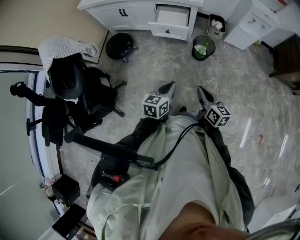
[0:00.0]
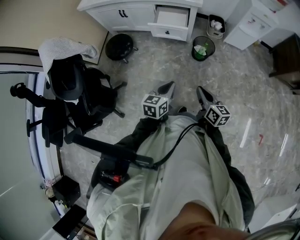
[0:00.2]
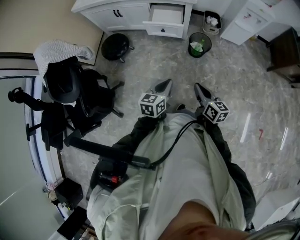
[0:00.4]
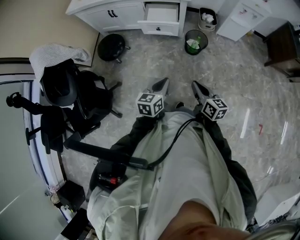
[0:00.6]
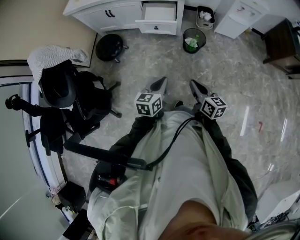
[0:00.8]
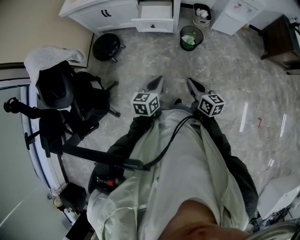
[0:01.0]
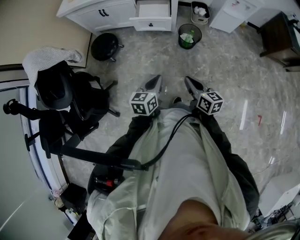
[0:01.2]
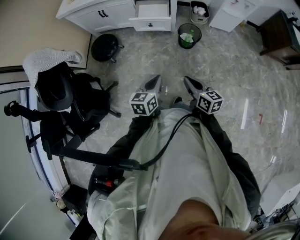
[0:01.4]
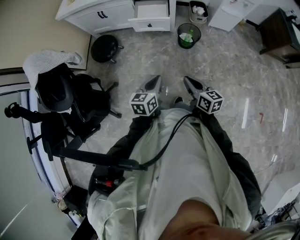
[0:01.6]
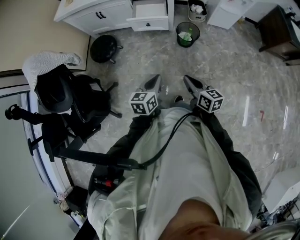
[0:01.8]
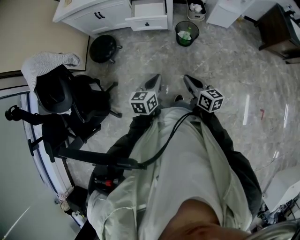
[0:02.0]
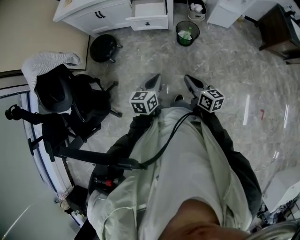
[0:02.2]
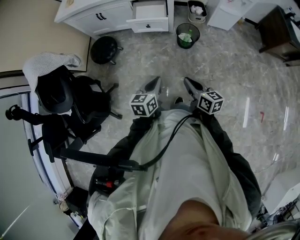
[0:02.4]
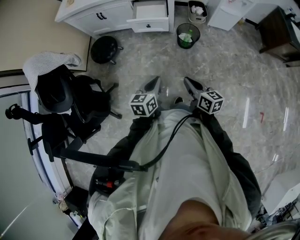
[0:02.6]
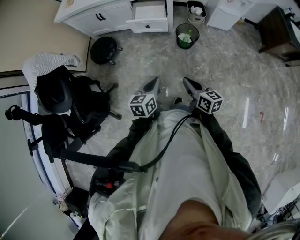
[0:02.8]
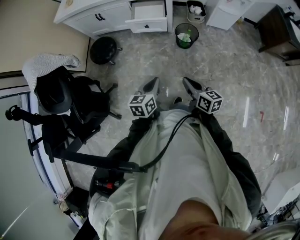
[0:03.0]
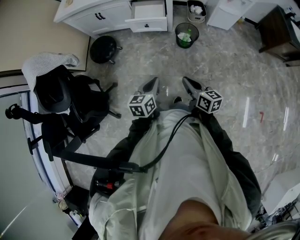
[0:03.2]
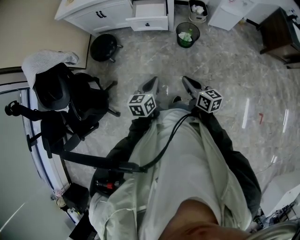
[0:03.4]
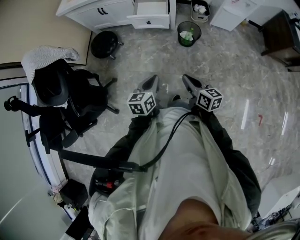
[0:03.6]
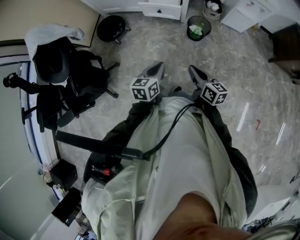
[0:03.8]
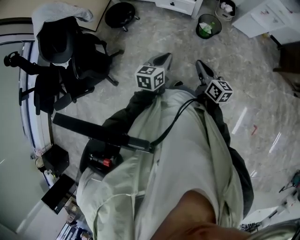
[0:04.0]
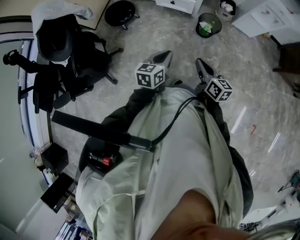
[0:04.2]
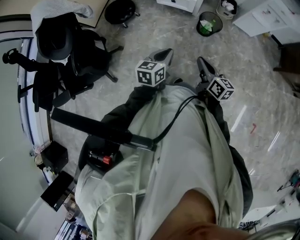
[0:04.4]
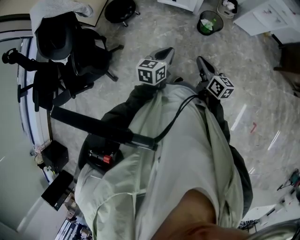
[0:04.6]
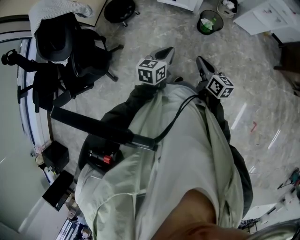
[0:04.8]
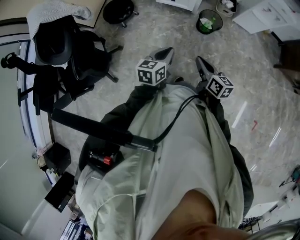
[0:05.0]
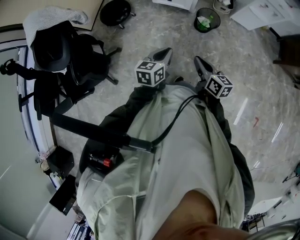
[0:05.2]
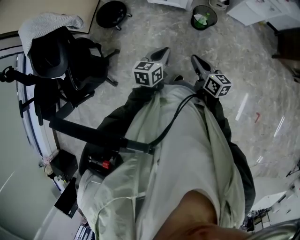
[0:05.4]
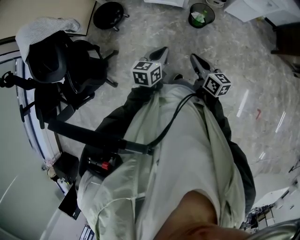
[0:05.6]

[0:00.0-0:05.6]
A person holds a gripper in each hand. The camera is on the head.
0:00.0 to 0:01.4: The grippers stay close to where they were, moving slightly.
0:01.4 to 0:02.8: Both grippers stay put.
0:02.8 to 0:05.6: There are only small adjustments of the grippers.

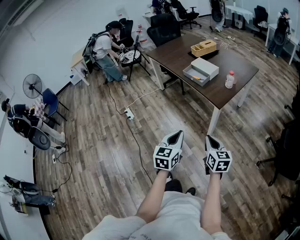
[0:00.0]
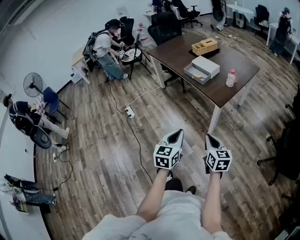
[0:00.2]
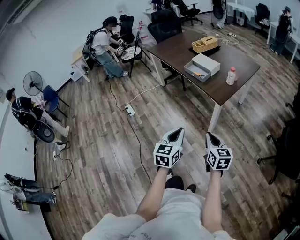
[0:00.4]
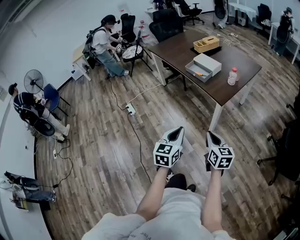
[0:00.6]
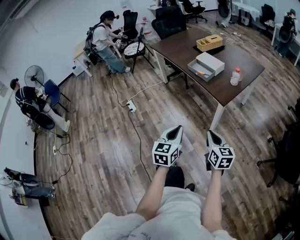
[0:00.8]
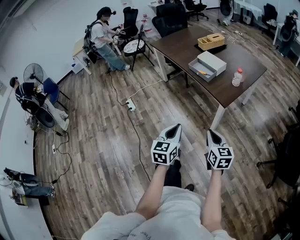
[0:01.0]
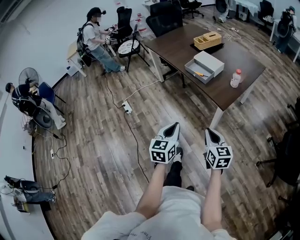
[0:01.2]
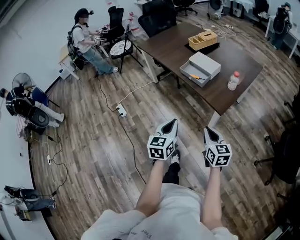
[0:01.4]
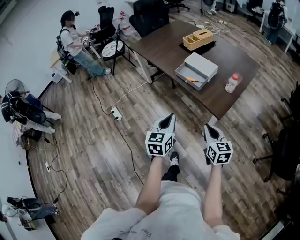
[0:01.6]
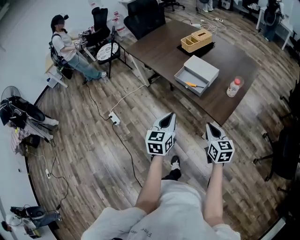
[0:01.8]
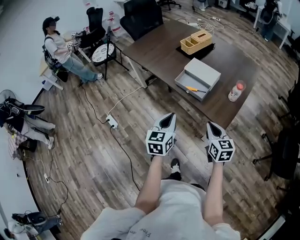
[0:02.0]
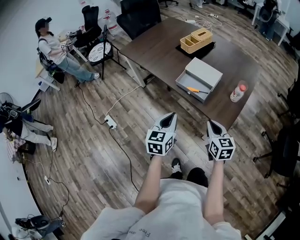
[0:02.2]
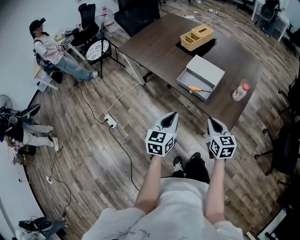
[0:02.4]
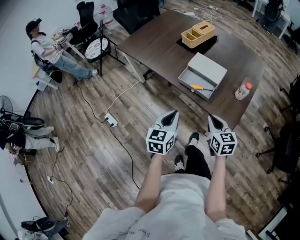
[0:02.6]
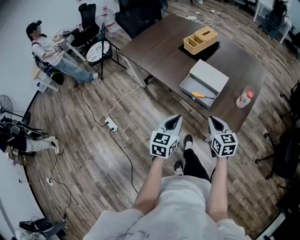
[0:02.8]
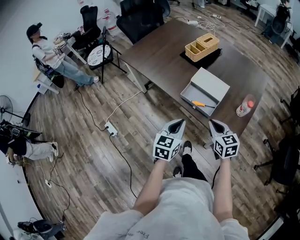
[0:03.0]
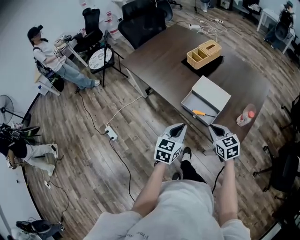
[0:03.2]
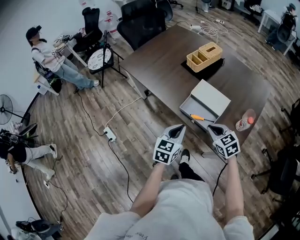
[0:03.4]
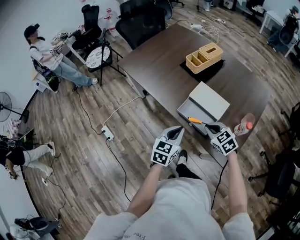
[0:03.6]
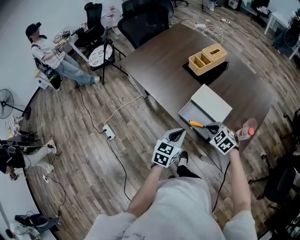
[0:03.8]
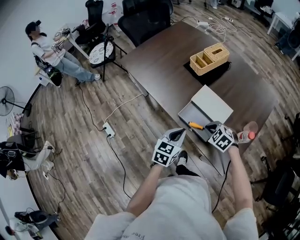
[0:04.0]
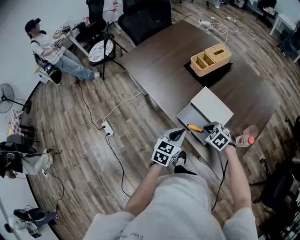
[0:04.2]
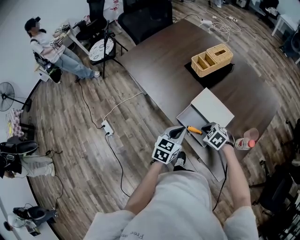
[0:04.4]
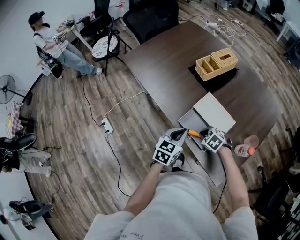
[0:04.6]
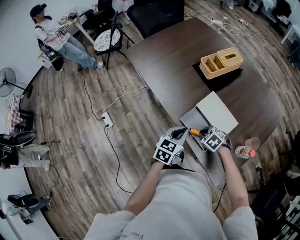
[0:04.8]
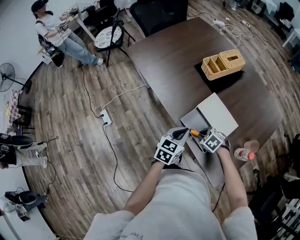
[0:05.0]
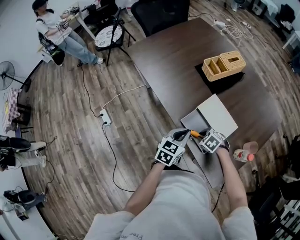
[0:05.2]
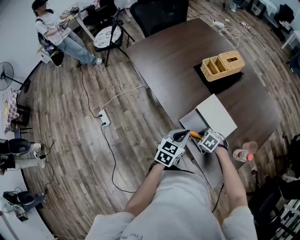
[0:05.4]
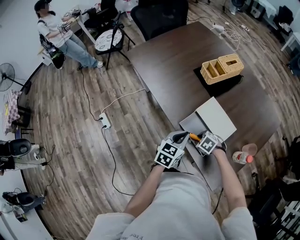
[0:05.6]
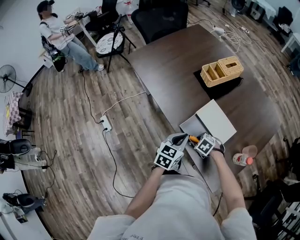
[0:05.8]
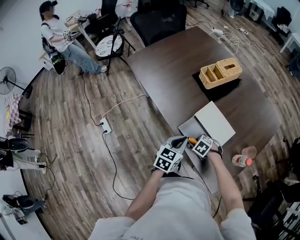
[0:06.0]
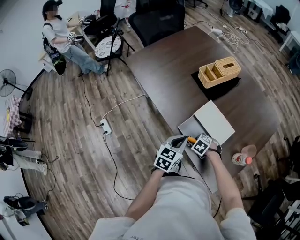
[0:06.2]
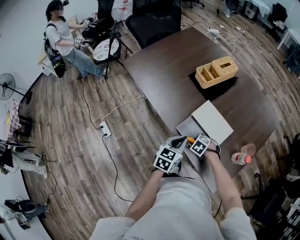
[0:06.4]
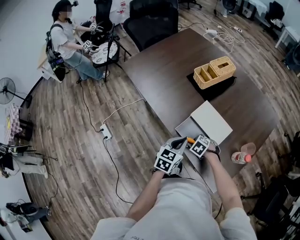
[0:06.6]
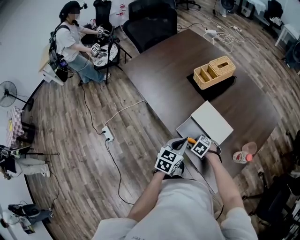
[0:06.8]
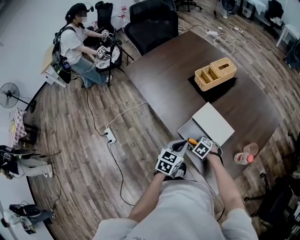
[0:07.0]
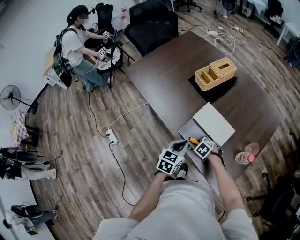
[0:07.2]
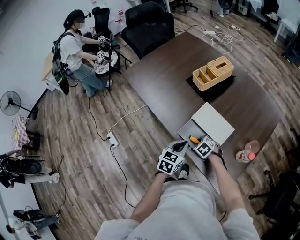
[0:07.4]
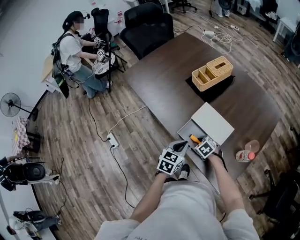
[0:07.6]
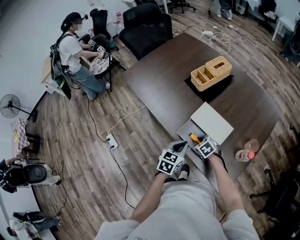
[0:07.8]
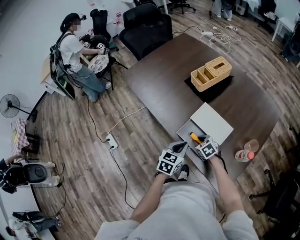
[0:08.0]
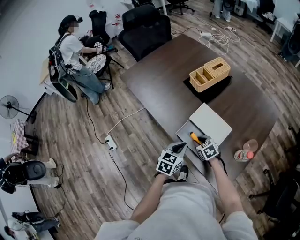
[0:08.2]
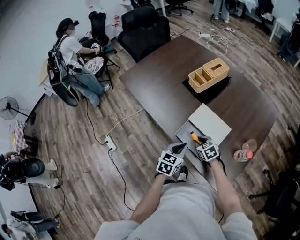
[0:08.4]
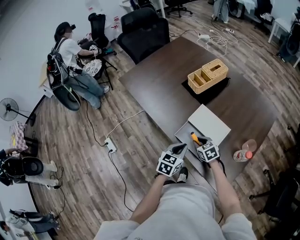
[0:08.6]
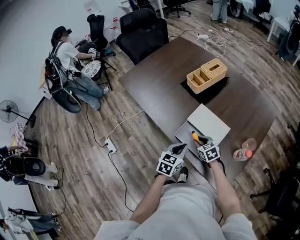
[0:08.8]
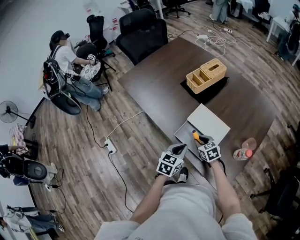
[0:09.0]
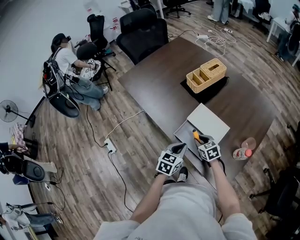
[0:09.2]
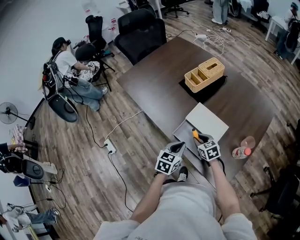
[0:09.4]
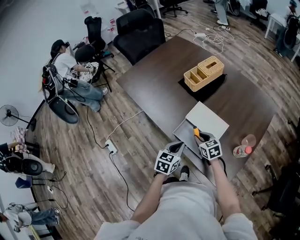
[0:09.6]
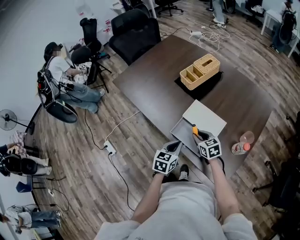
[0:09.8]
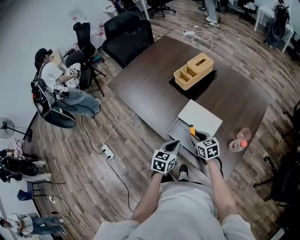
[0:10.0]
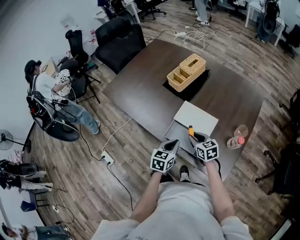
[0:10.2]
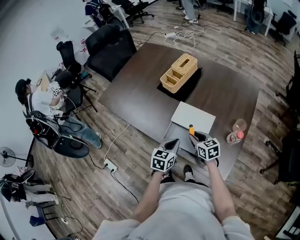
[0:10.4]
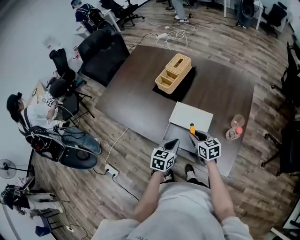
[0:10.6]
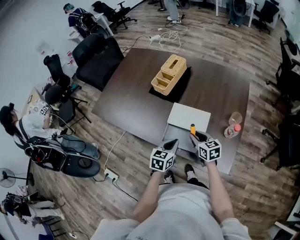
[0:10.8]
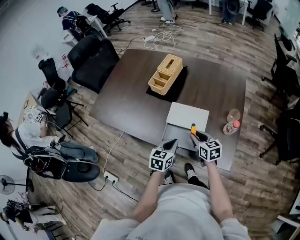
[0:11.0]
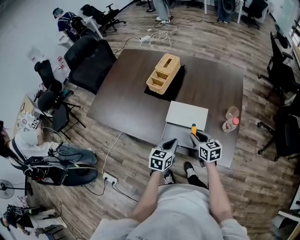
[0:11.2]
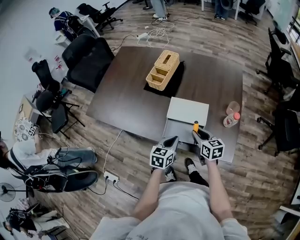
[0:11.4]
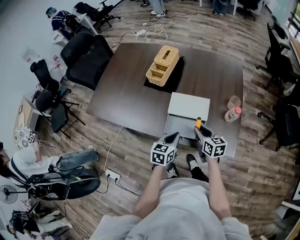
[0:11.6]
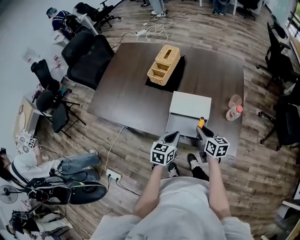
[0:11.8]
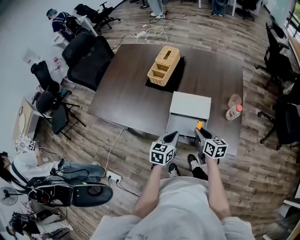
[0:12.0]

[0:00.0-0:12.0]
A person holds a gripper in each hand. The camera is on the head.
0:00.0 to 0:01.6: The two grippers go roughly 25 cm forward.
0:01.6 to 0:03.0: The two grippers go approximately 25 cm forward.
0:03.0 to 0:04.4: Both grippers move forward and downward, some 20 cm. The right gripper points its fingers about 40 degrees further downward.
0:04.4 to 0:06.0: The right gripper heads downward, covering about 10 cm, and opens.
0:06.0 to 0:07.6: The right gripper rotates about 20 degrees.
0:07.6 to 0:09.0: The right gripper moves upward, about 5 cm, and changes its angle by roughly 30 degrees.
0:09.0 to 0:10.4: The right gripper shifts some 5 cm upward, and changes its angle by approximately 30 degrees.
0:10.4 to 0:12.0: The right gripper moves backward, about 5 cm, and changes its angle by roughly 30 degrees.

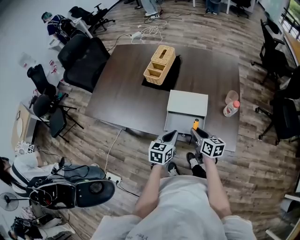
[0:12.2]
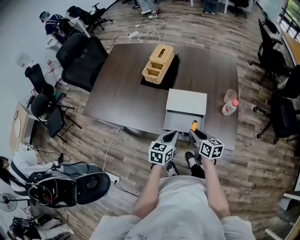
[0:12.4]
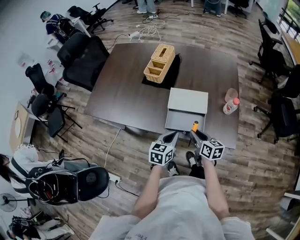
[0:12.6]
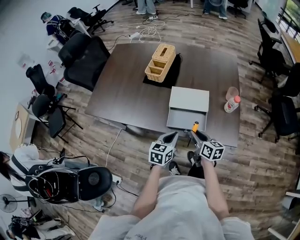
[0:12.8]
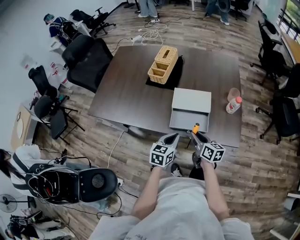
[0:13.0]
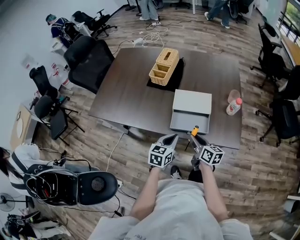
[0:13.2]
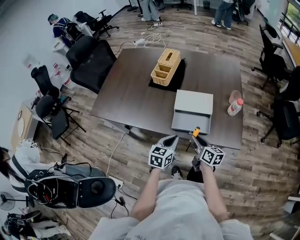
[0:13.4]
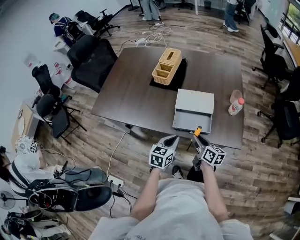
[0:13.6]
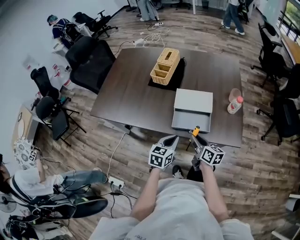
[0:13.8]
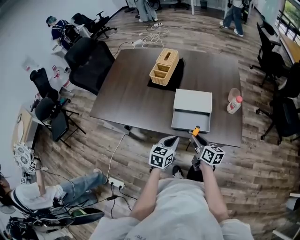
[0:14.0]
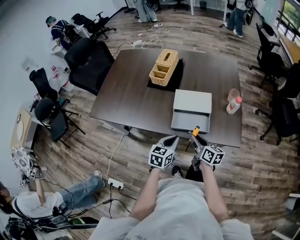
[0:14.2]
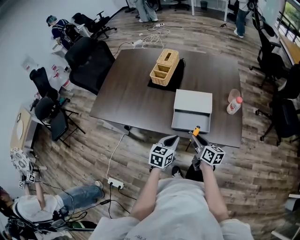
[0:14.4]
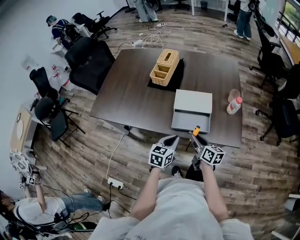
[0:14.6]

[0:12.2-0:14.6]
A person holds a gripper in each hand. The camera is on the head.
0:12.2 to 0:13.4: The two grippers go roughly 5 cm backward.
0:13.4 to 0:14.6: The two grippers keep their place.

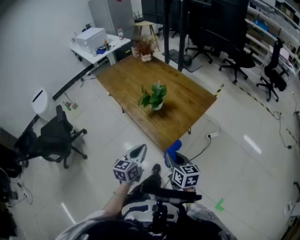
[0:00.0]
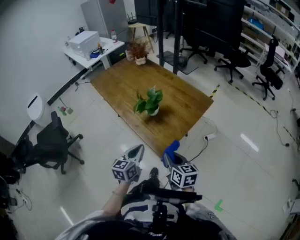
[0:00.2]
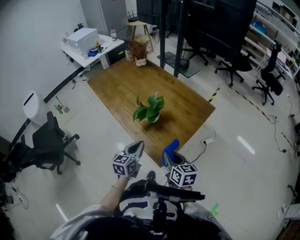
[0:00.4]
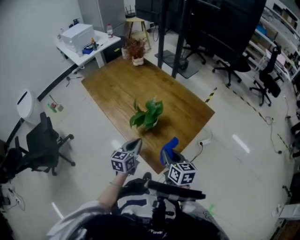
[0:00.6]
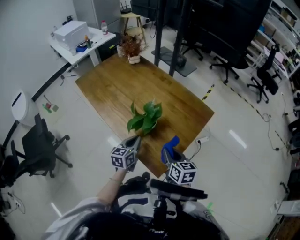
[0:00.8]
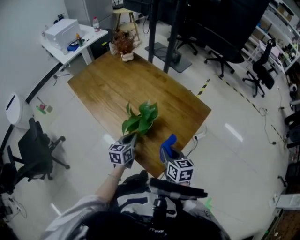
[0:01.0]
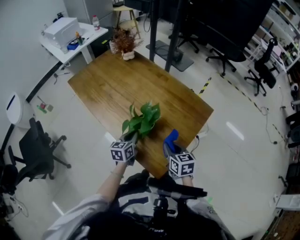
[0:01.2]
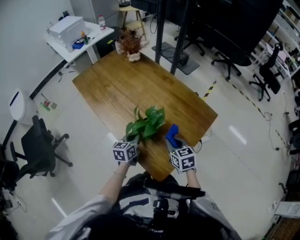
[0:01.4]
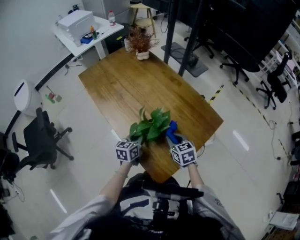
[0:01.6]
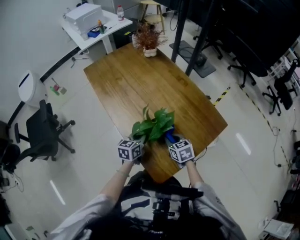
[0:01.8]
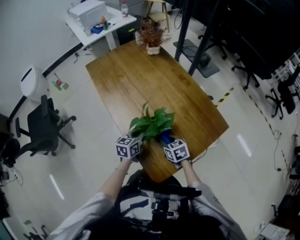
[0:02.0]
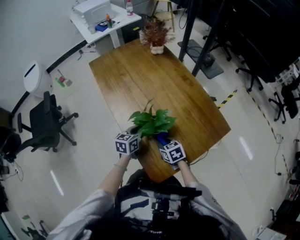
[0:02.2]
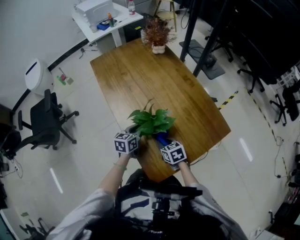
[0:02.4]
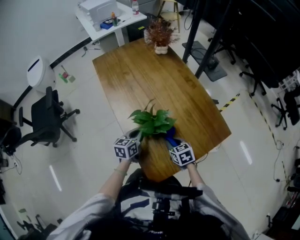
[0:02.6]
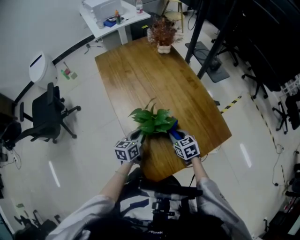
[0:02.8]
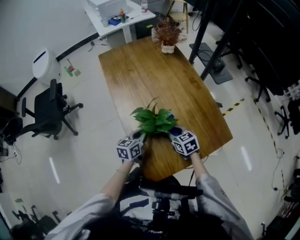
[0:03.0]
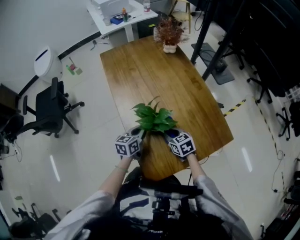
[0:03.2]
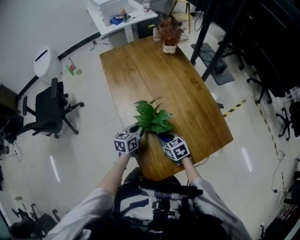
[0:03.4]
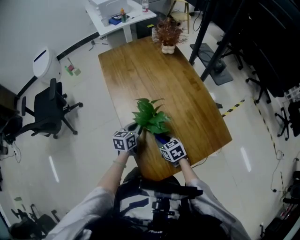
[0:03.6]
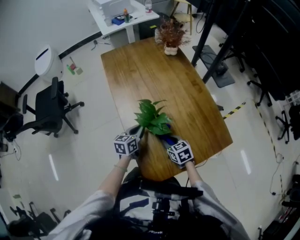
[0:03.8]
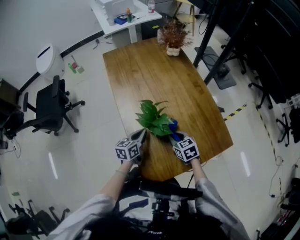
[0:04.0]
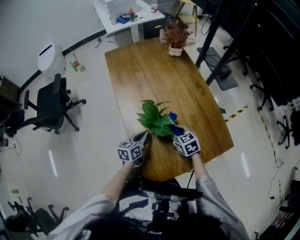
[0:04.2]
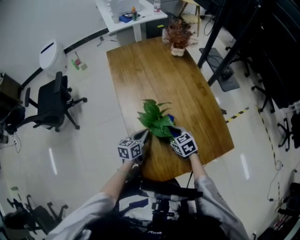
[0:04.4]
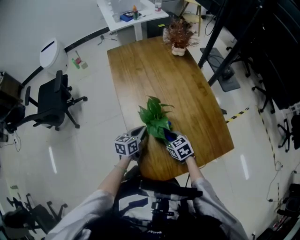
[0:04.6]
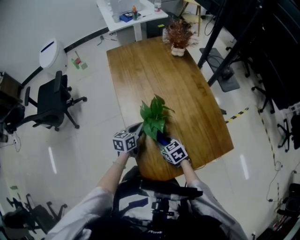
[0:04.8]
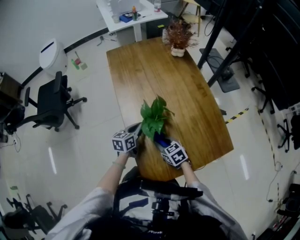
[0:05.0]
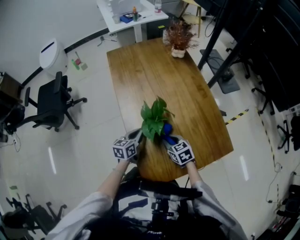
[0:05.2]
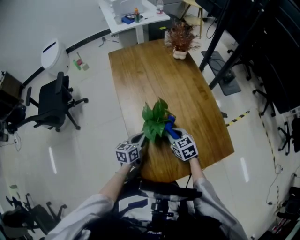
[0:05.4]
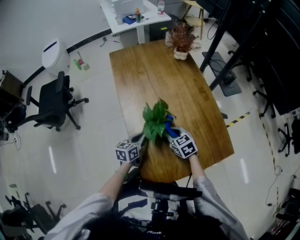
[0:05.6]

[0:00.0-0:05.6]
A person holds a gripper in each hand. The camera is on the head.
0:00.0 to 0:01.4: Both grippers move forward, approximately 30 cm. The right gripper turns by some 20 degrees.
0:01.4 to 0:02.8: The right gripper moves forward and downward, about 10 cm, and swivels approximately 30 degrees.
